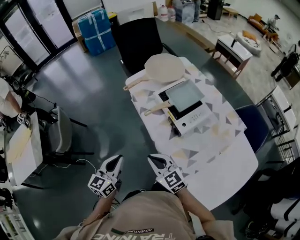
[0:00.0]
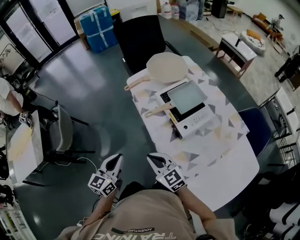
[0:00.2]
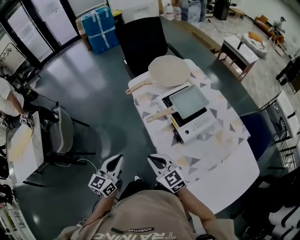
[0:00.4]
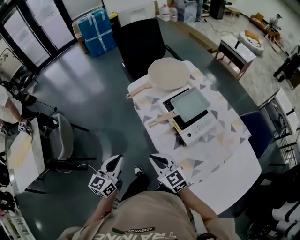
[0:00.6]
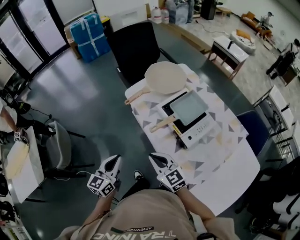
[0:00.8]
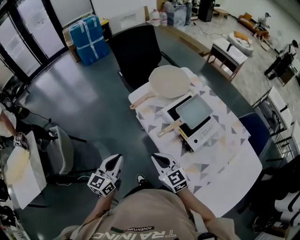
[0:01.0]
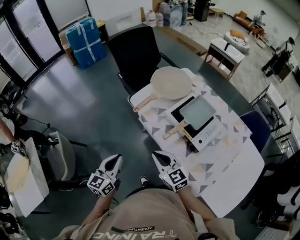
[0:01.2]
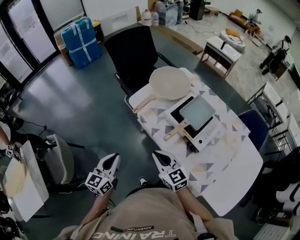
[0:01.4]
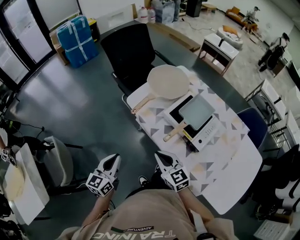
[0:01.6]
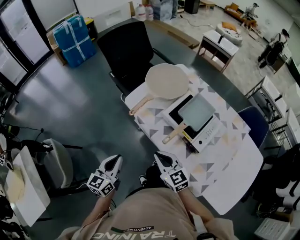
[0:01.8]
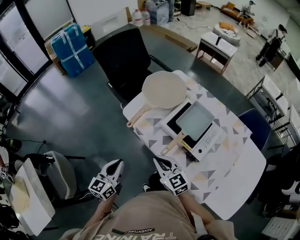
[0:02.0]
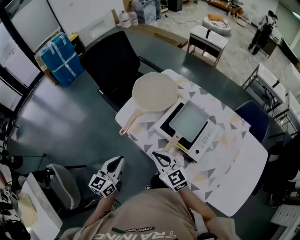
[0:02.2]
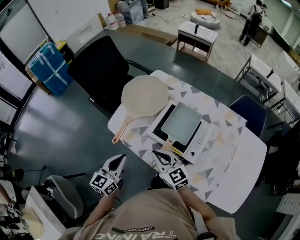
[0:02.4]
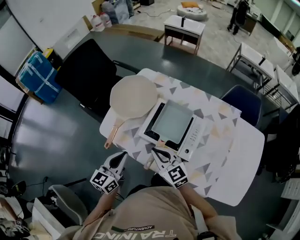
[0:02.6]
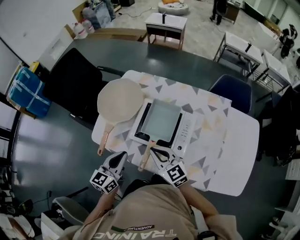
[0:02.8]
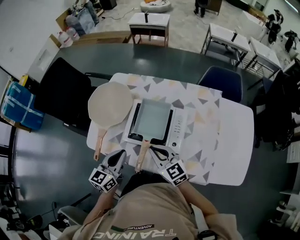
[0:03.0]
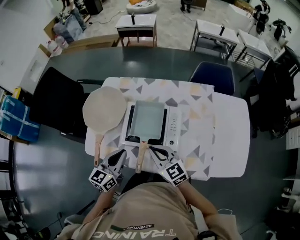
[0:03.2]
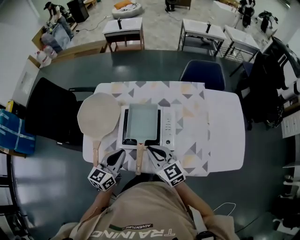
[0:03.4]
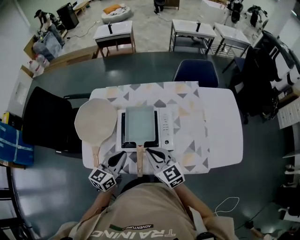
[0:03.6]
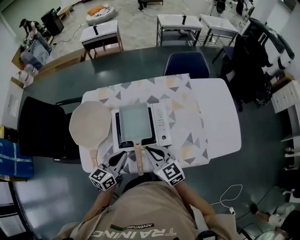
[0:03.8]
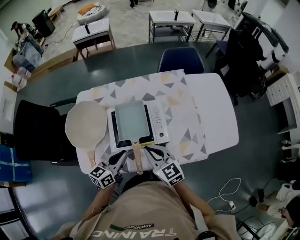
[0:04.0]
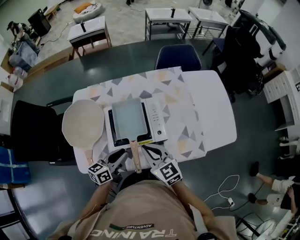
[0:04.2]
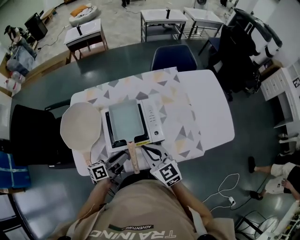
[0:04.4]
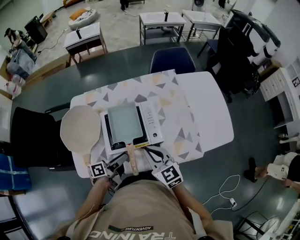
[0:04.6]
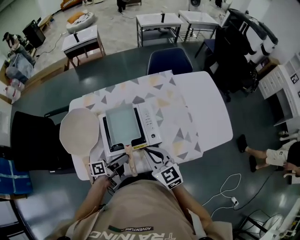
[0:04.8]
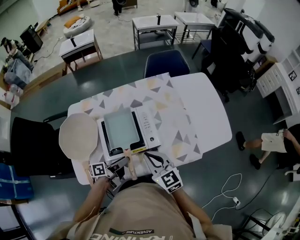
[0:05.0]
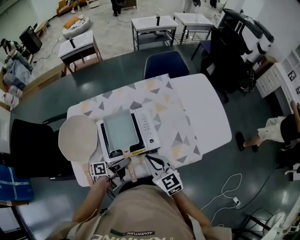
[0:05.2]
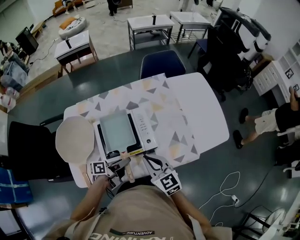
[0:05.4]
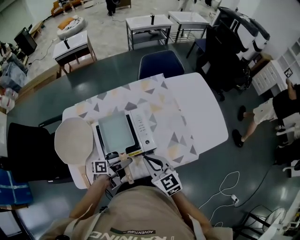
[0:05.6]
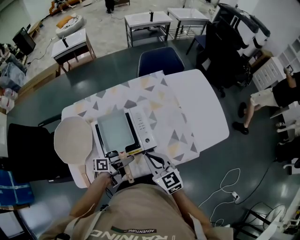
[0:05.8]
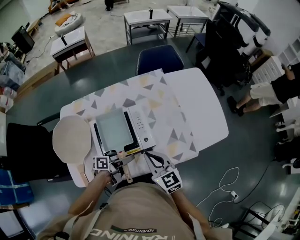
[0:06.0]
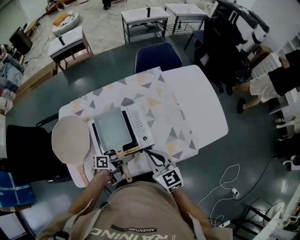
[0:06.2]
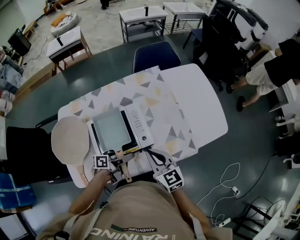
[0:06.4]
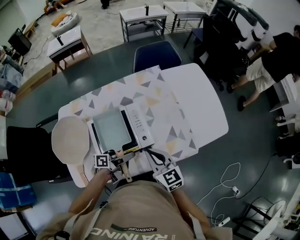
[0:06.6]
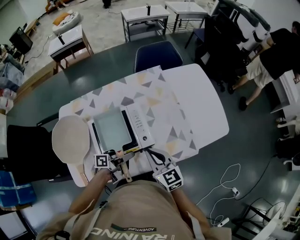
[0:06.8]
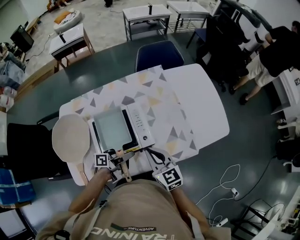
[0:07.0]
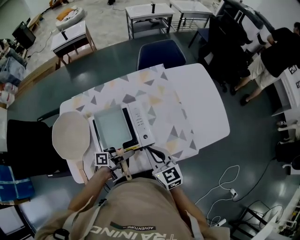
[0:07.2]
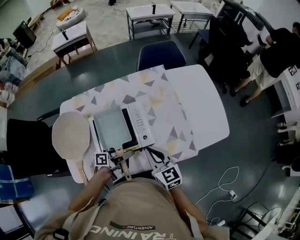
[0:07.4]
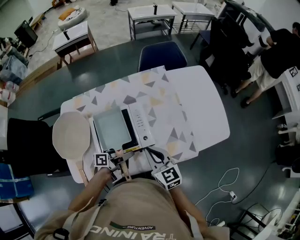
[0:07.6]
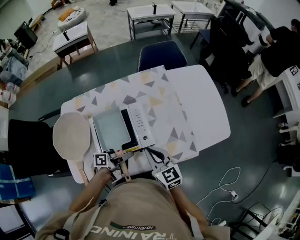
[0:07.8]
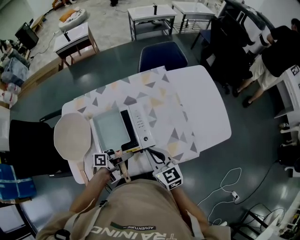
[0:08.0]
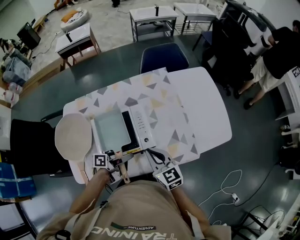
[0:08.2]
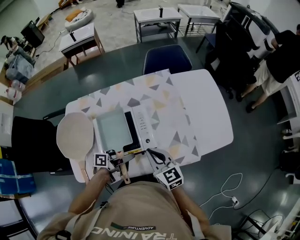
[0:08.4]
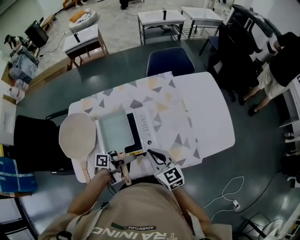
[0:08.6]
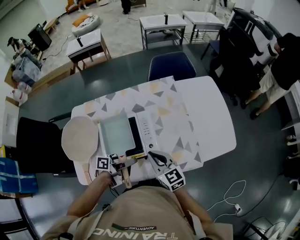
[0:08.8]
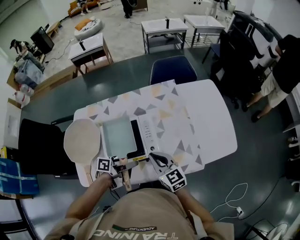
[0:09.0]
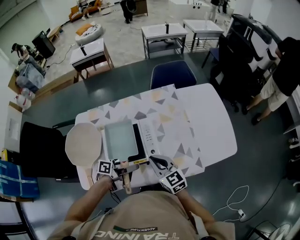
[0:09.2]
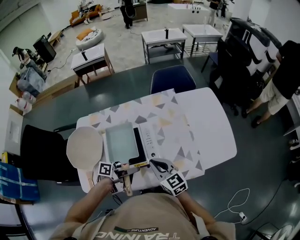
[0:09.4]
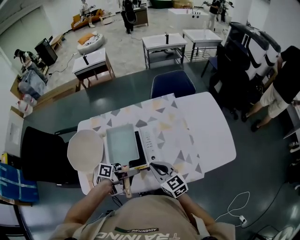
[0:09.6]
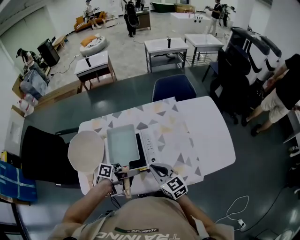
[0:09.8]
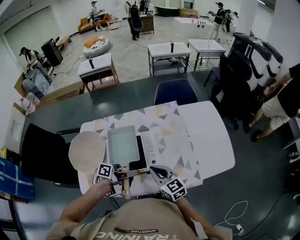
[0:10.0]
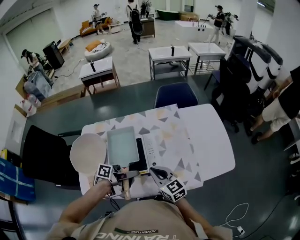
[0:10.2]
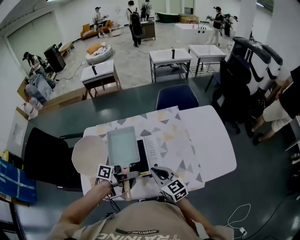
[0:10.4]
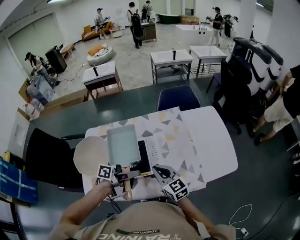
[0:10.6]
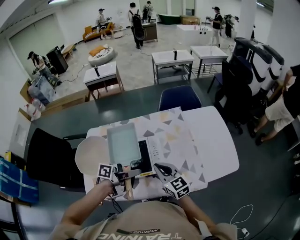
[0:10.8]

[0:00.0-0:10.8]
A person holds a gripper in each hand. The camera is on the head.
0:00.0 to 0:01.6: The right gripper is displaced forward by approximately 15 cm, and turns by approximately 20 degrees. The left gripper heads forward and to the left, covering approximately 20 cm.
0:01.6 to 0:03.0: The right gripper moves roughly 20 cm, and changes its angle by roughly 30 degrees, while the left gripper shifts by approximately 30 cm, and changes its angle by approximately 40 degrees.
0:03.0 to 0:04.6: The right gripper turns by approximately 30 degrees, while the left gripper is displaced downward by some 10 cm, changes its angle by approximately 70 degrees, and opens up.
0:04.6 to 0:06.2: The right gripper travels to the right by about 5 cm, while the left gripper is displaced to the right by about 10 cm, and rotates roughly 20 degrees.
0:06.2 to 0:07.8: The left gripper closes its fingers.
0:07.8 to 0:09.2: The grippers stay close to where they were, moving slightly.
0:09.2 to 0:10.8: The left gripper moves upward, roughly 10 cm.

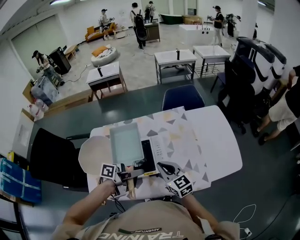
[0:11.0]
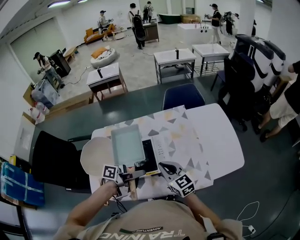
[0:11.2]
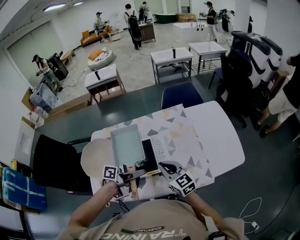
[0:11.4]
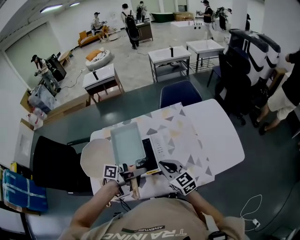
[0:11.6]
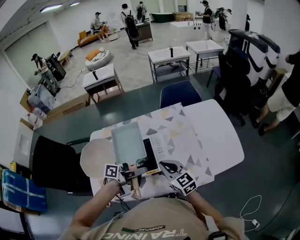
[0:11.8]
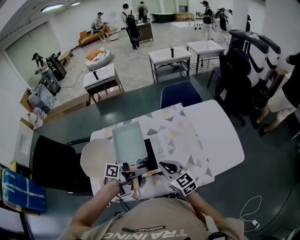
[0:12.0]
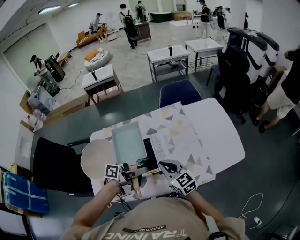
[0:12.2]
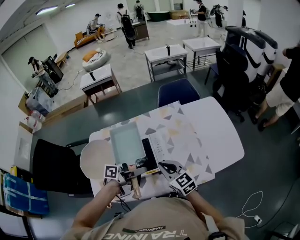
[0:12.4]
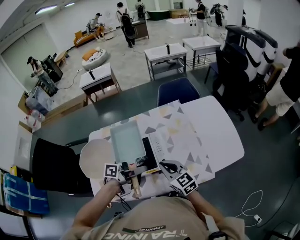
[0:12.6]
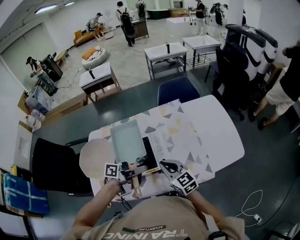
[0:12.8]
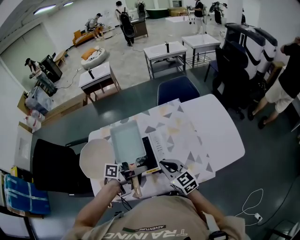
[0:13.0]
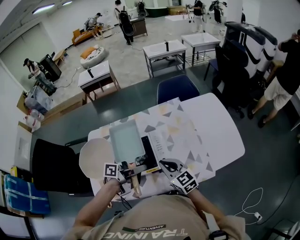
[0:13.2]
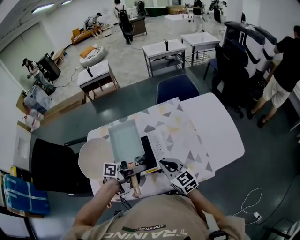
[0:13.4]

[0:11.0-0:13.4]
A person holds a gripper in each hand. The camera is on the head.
0:11.0 to 0:12.2: The two grippers keep their place.
0:12.2 to 0:13.4: The grippers move only a little.

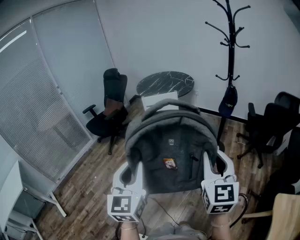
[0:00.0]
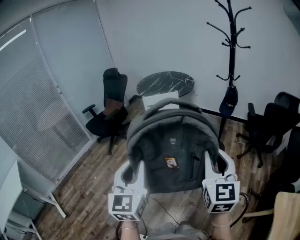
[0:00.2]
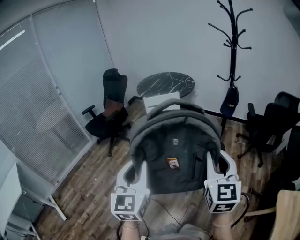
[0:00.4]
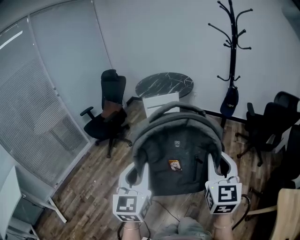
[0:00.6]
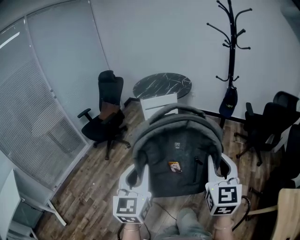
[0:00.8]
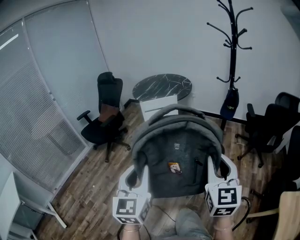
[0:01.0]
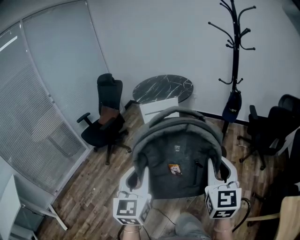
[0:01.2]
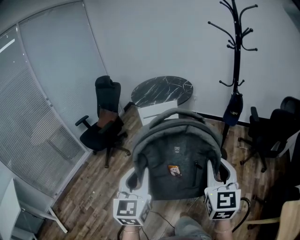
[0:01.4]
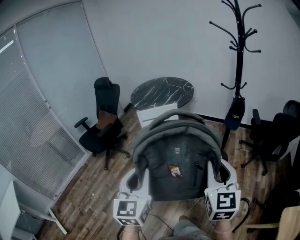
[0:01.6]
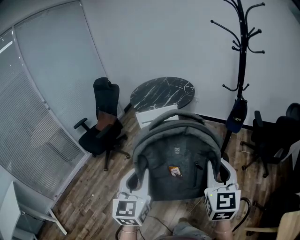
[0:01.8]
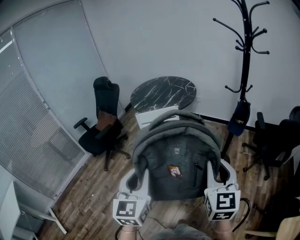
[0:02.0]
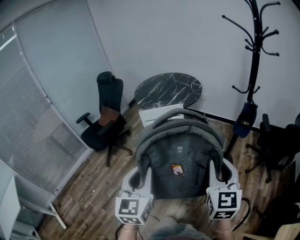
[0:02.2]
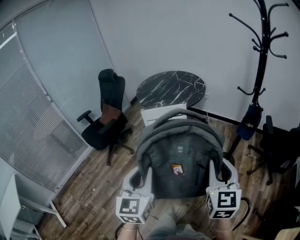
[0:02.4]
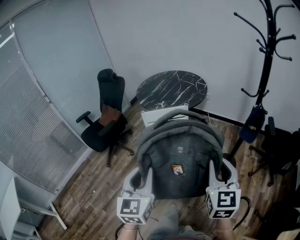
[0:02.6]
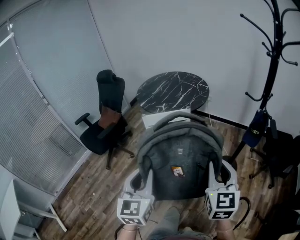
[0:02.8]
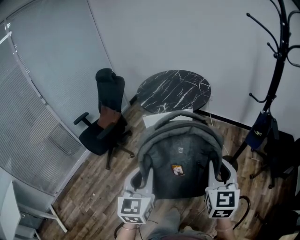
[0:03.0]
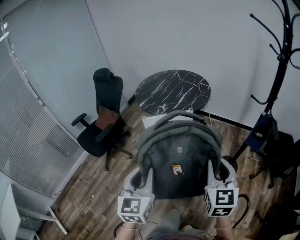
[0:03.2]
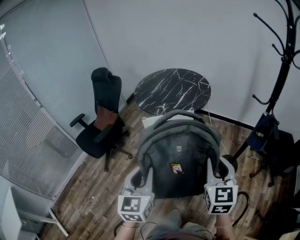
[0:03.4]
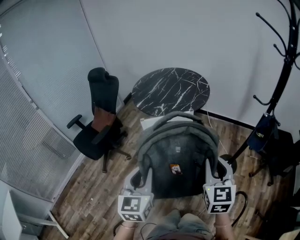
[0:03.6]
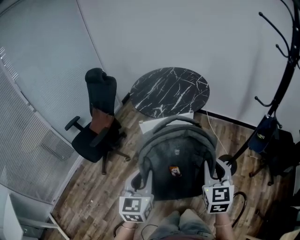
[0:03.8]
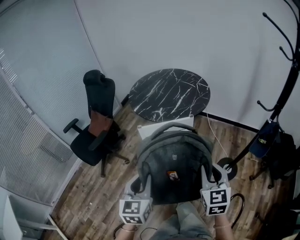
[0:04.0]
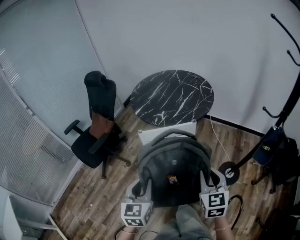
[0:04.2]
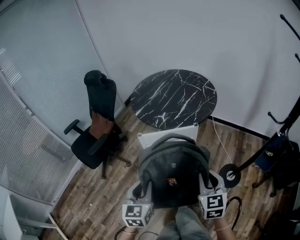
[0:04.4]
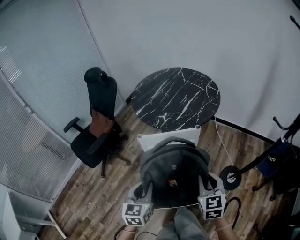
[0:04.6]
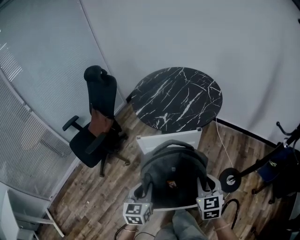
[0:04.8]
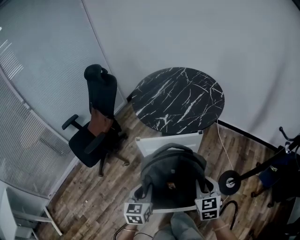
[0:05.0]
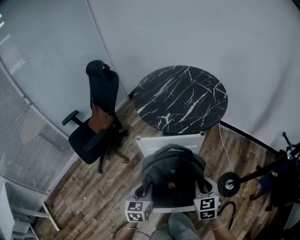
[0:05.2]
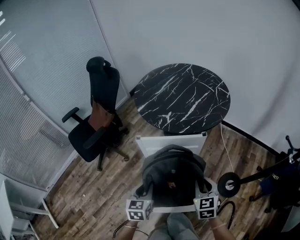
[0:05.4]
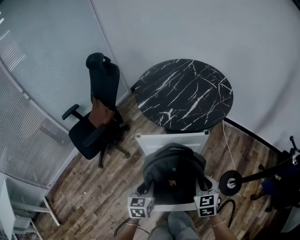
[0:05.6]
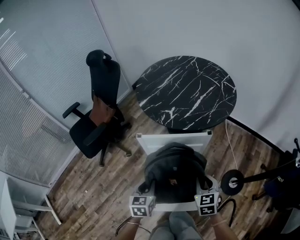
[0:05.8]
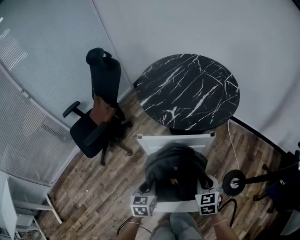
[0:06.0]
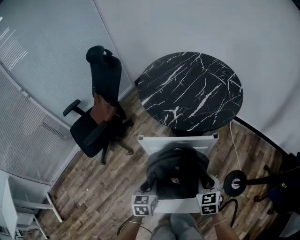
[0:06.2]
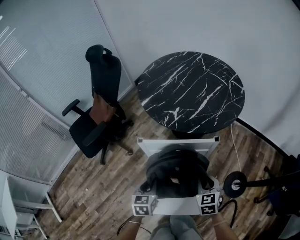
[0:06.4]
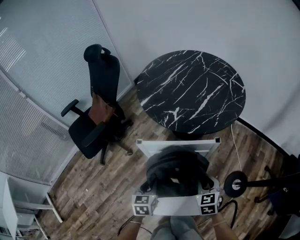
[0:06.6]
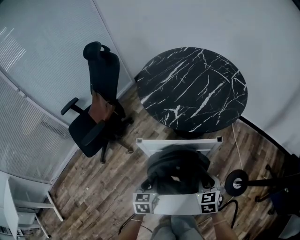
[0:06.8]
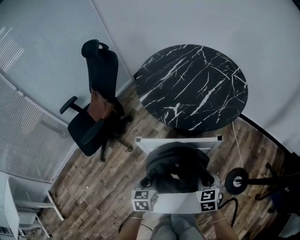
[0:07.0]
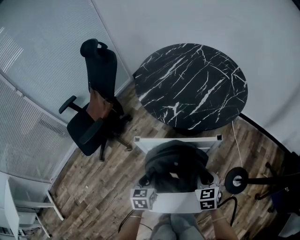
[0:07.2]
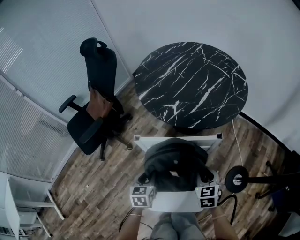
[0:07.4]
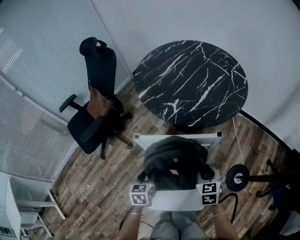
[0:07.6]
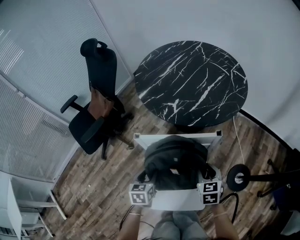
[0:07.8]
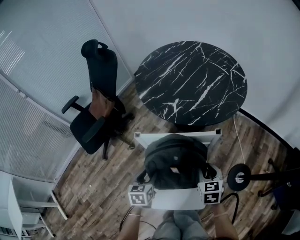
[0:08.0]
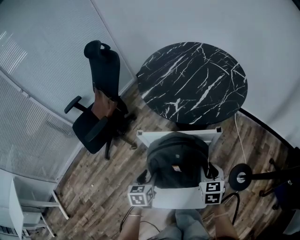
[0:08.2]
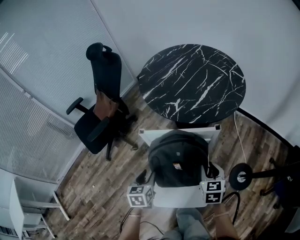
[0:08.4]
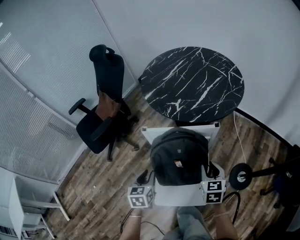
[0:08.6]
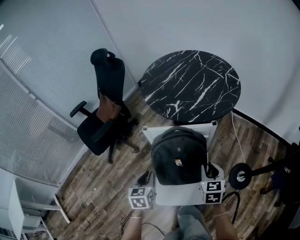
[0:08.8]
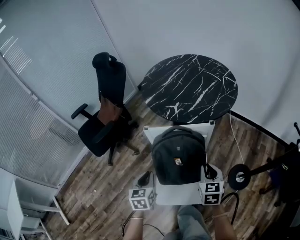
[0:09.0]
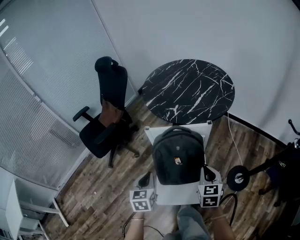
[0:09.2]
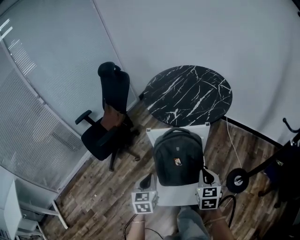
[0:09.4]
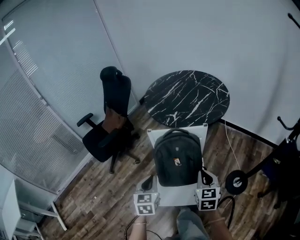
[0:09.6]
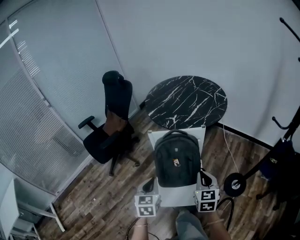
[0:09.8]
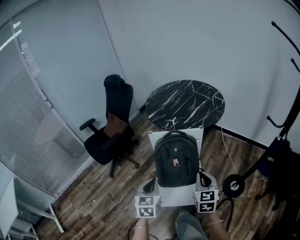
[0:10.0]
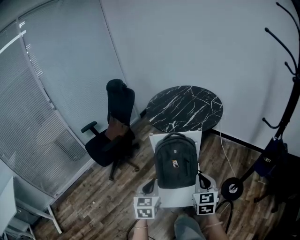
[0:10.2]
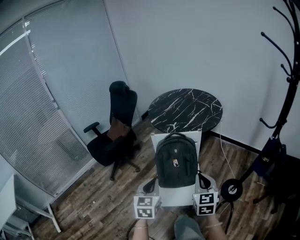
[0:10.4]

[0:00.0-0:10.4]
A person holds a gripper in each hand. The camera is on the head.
0:00.0 to 0:01.4: The two grippers go about 15 cm forward.
0:01.4 to 0:03.0: The two grippers go roughly 30 cm forward.
0:03.0 to 0:04.4: Both grippers move forward and downward, about 25 cm.
0:04.4 to 0:06.0: The grippers both shift downward and forward by roughly 20 cm.
0:06.0 to 0:07.4: The grippers both shift forward and downward by about 10 cm.
0:07.4 to 0:09.0: Both grippers move upward and backward, roughly 15 cm. The left gripper opens, then closes once more.
0:09.0 to 0:10.4: Both grippers travel together backward and upward, approximately 25 cm.
